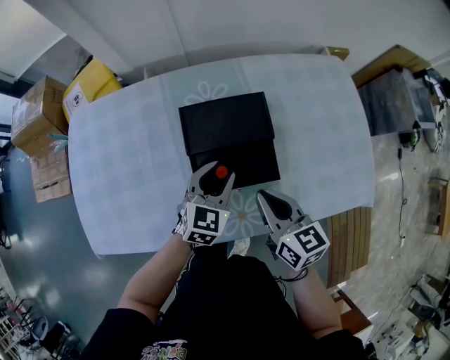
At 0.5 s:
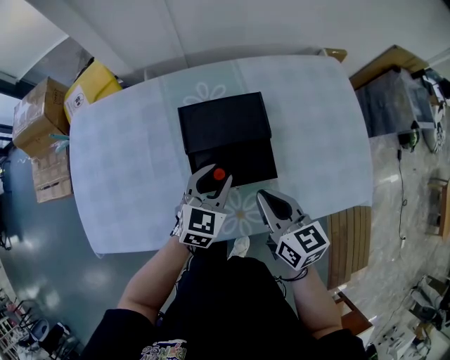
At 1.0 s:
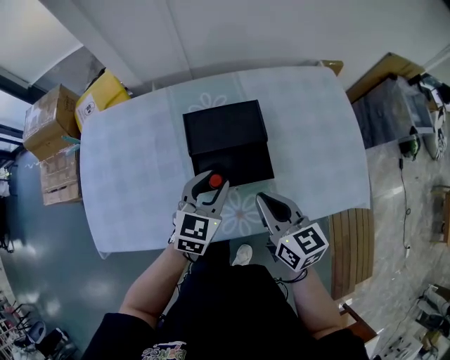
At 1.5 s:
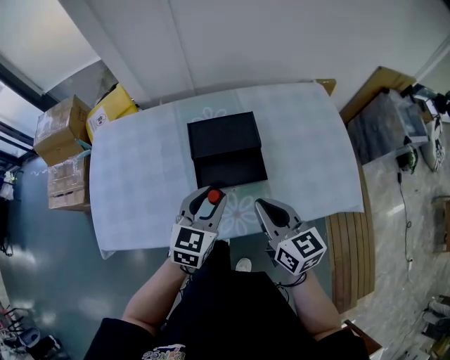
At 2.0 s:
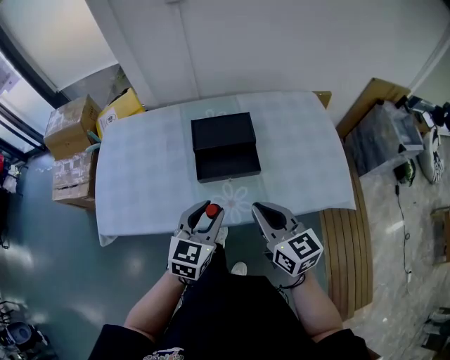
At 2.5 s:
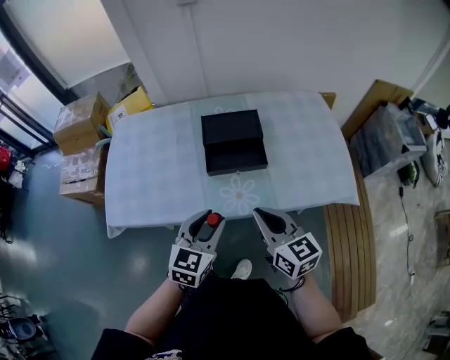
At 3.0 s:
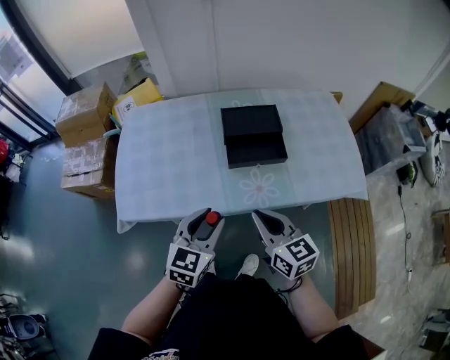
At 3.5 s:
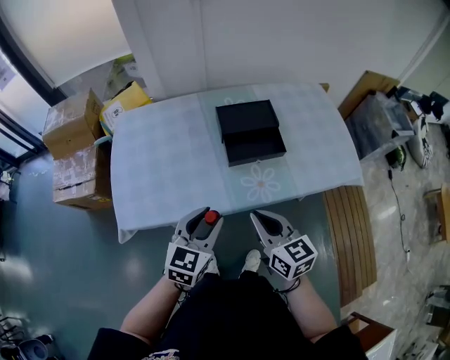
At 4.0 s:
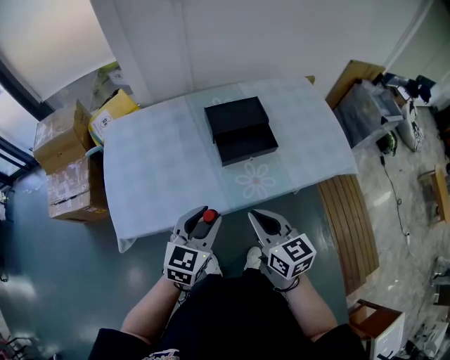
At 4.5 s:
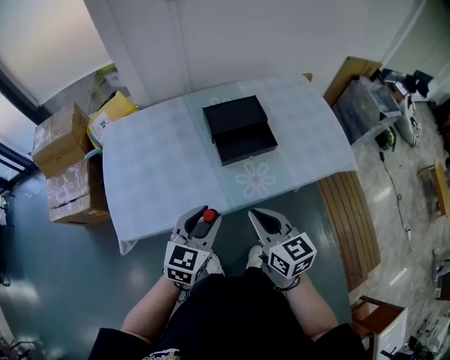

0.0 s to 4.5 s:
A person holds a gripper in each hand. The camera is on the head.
0.0 to 2.0 s: The grippers both shift backward and upward by about 20 cm.
2.0 to 4.5 s: The two grippers go about 15 cm to the left and backward.

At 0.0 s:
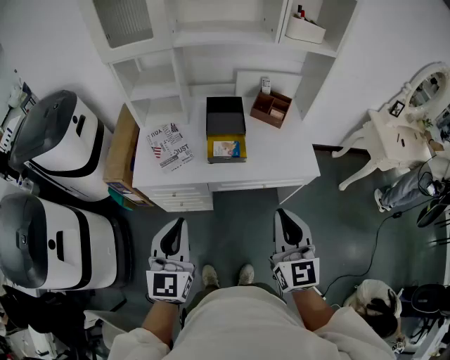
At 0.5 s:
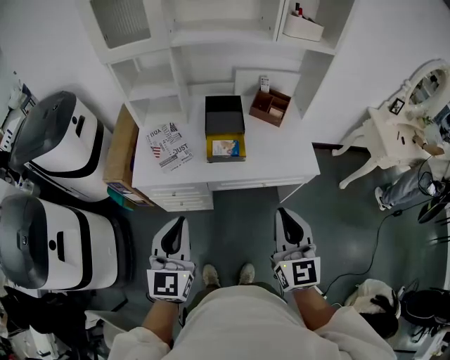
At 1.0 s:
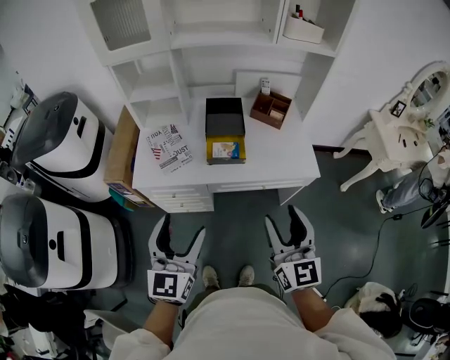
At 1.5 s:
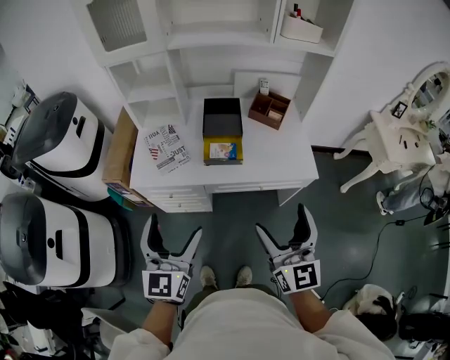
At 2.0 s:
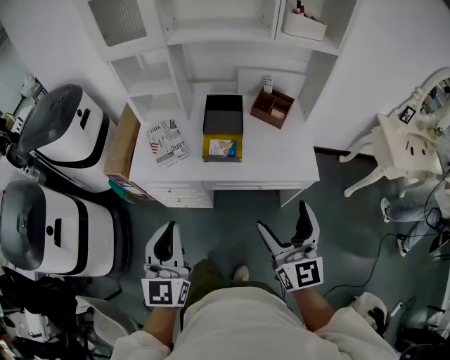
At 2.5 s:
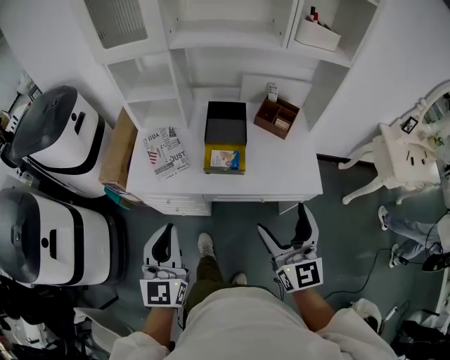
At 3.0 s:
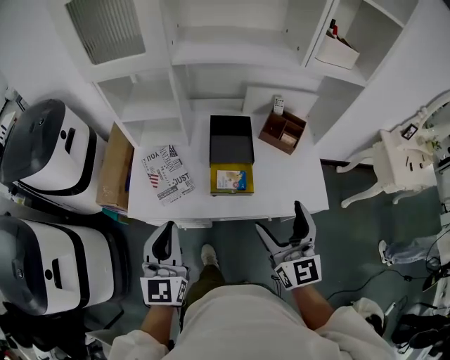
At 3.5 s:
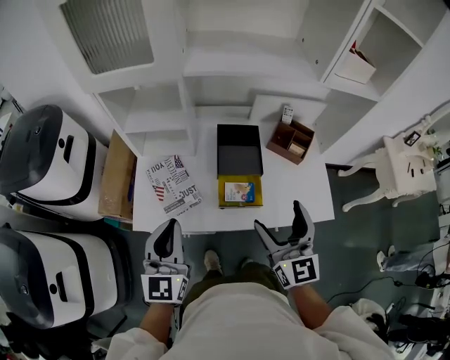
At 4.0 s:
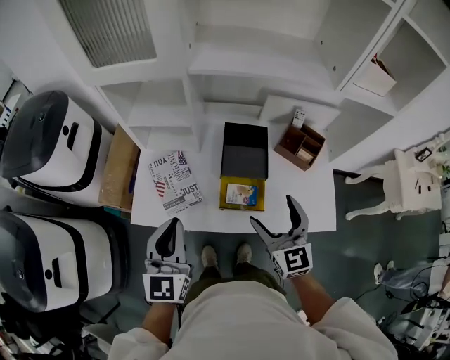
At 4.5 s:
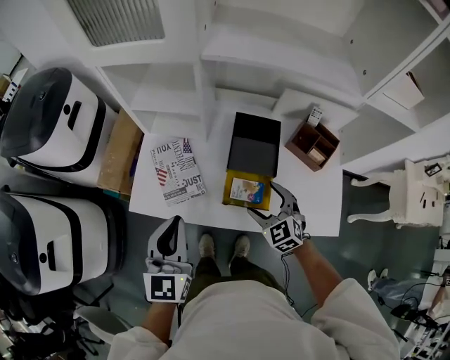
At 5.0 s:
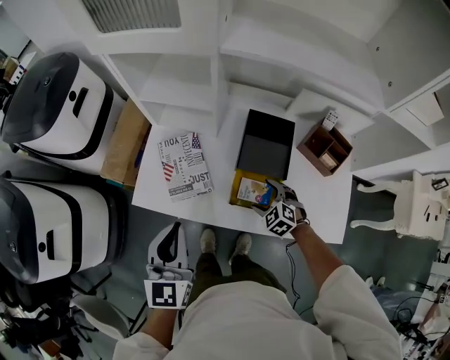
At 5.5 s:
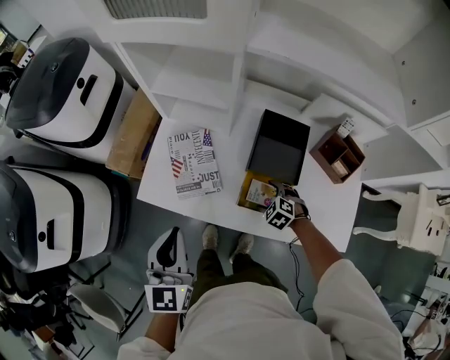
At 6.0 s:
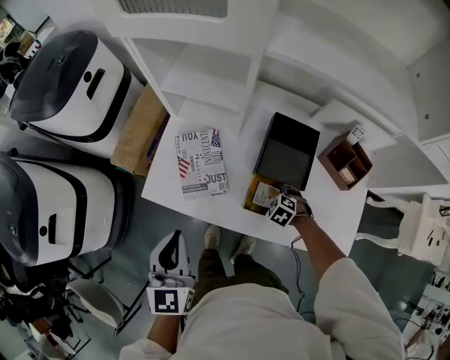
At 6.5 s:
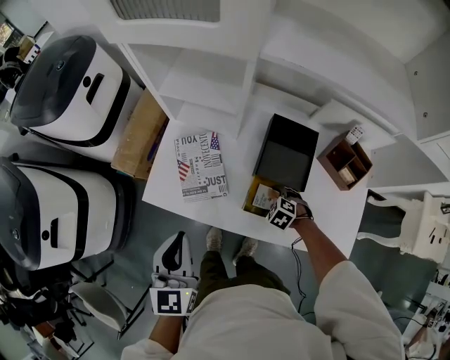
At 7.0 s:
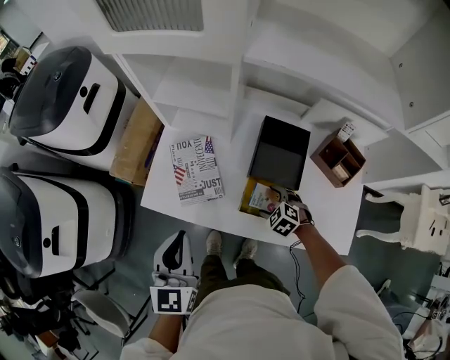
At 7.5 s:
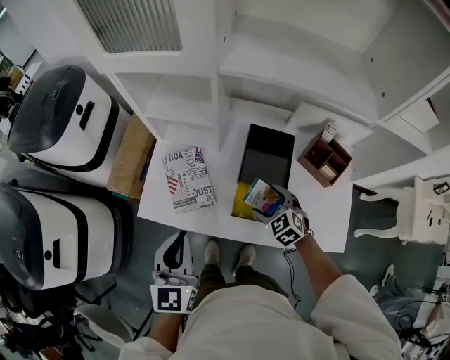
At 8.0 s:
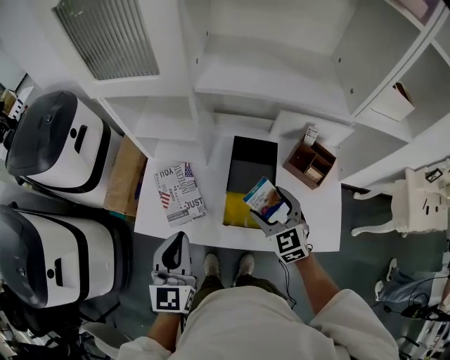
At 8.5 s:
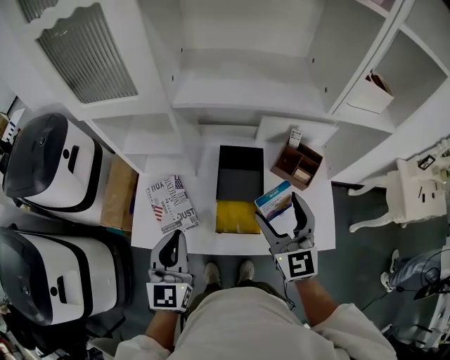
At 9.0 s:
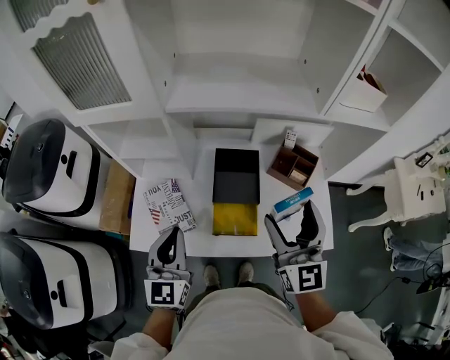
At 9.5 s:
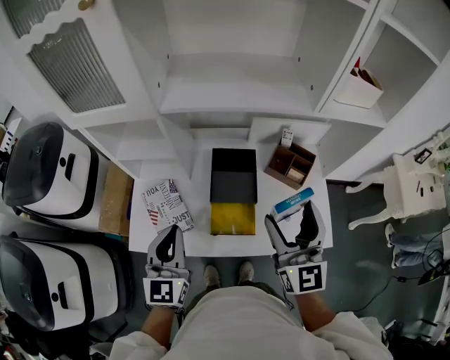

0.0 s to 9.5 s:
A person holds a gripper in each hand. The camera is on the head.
0.0 to 2.0 s: Both grippers travel together to the right, some 5 cm. The right gripper opens up. Meanwhile the left gripper opens and closes again.
2.0 to 4.0 s: The two grippers go approximately 30 cm forward.
4.0 to 5.5 s: The left gripper heads downward, covering approximately 5 cm; the right gripper shifts approximately 35 cm downward, and tips its fingers downward by roughly 60 degrees.
5.5 to 7.5 s: The right gripper moves upward, roughly 15 cm, and turns by approximately 20 degrees.
7.5 to 9.5 s: The left gripper goes some 10 cm to the right and upward; the right gripper moves upward, roughly 30 cm, and points its fingers about 50 degrees further upward.

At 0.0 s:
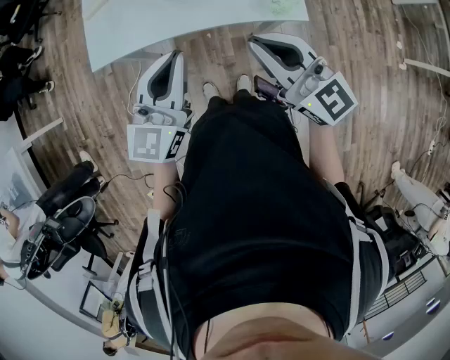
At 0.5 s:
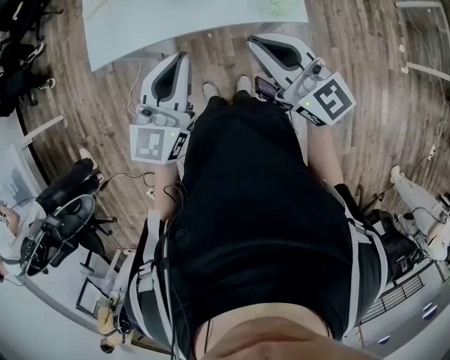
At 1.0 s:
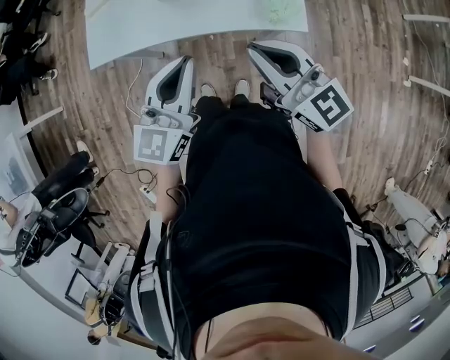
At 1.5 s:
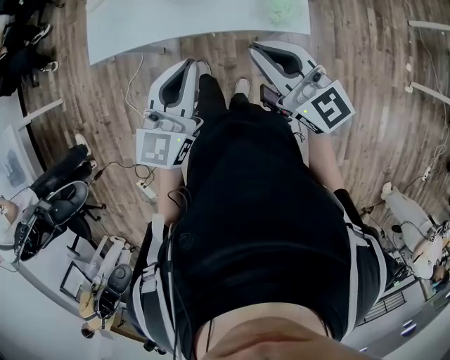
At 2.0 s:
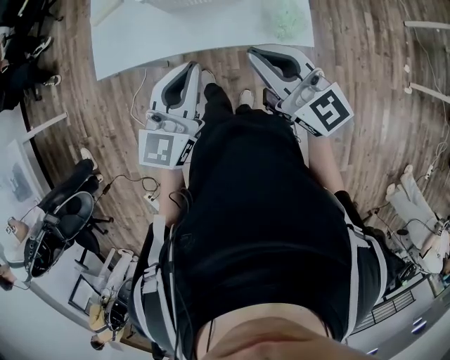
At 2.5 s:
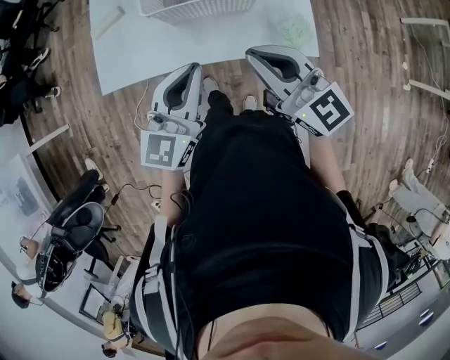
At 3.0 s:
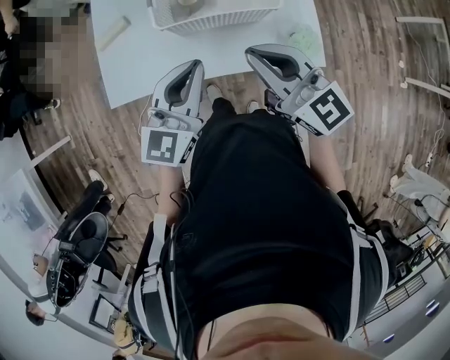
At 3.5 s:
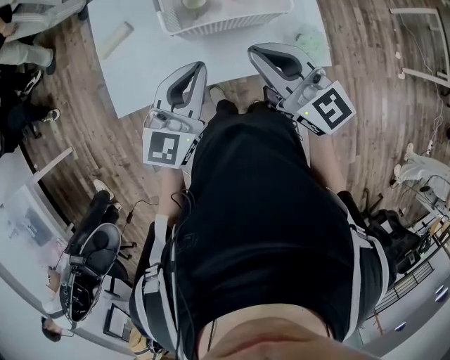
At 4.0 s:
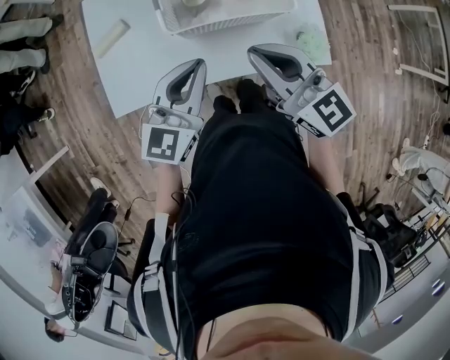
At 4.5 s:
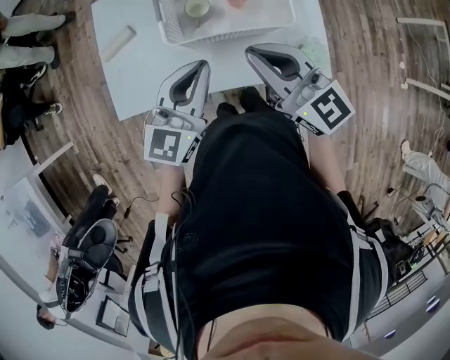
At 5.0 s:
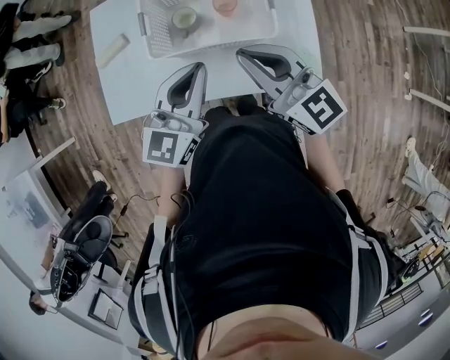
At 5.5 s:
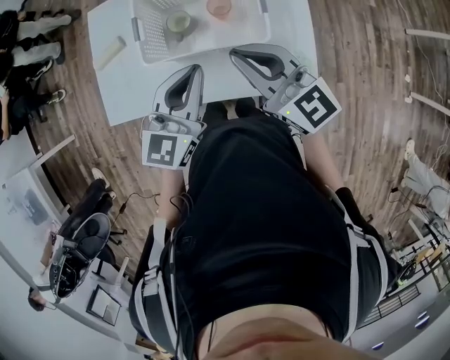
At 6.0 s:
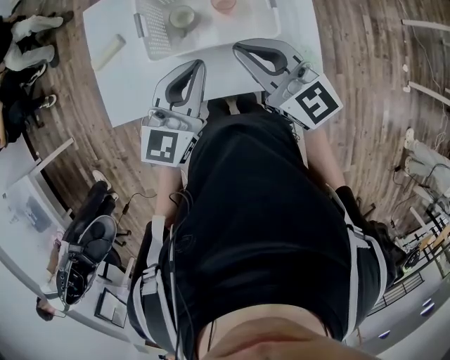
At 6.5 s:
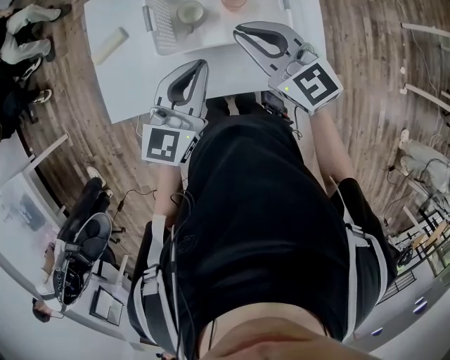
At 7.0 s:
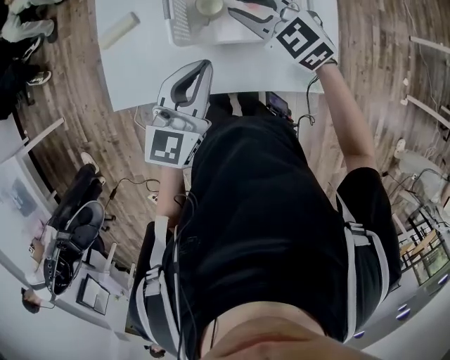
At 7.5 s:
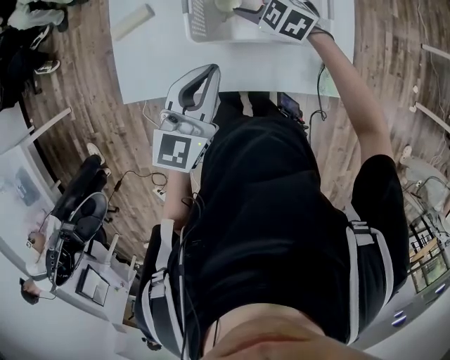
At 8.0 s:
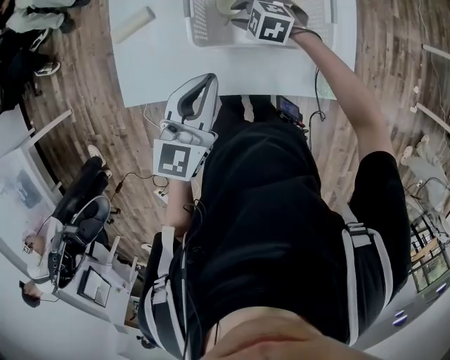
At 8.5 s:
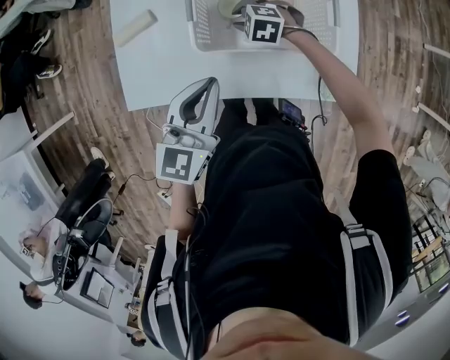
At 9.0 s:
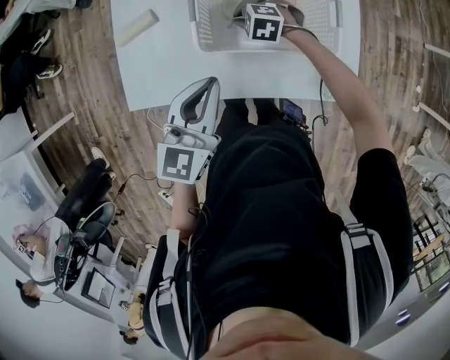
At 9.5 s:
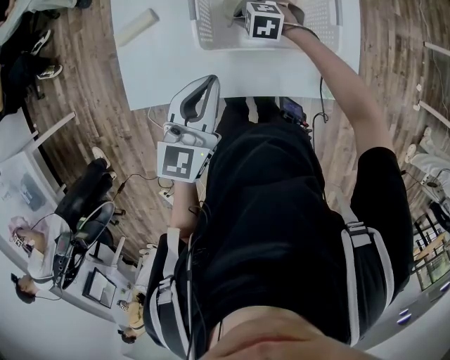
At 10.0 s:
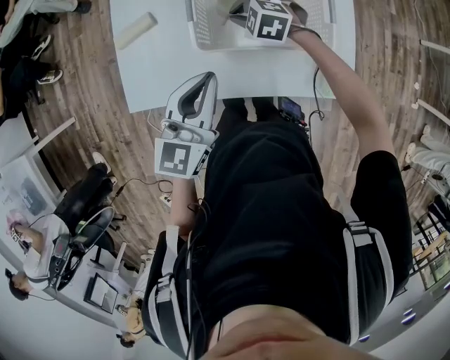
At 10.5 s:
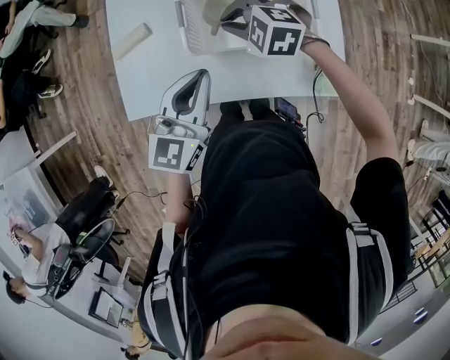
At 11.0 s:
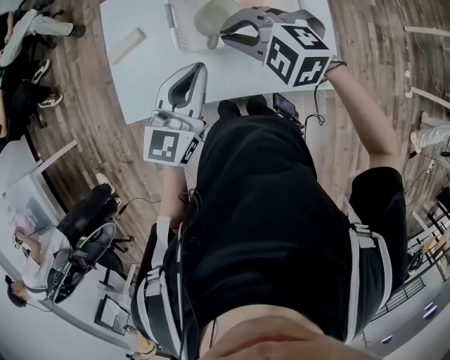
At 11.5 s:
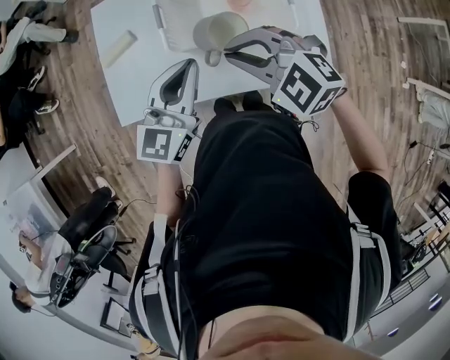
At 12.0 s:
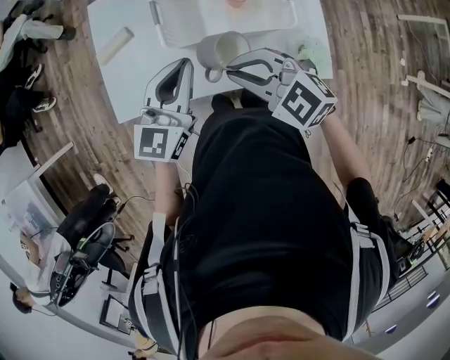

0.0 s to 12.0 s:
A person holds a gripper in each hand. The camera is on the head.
0.0 to 2.0 s: The right gripper goes approximately 10 cm forward; the left gripper is displaced forward and to the right by some 10 cm.
2.0 to 4.0 s: The two grippers go approximately 20 cm forward and to the left.
4.0 to 6.0 s: Both grippers travel together to the right and forward, roughly 10 cm.
6.0 to 8.0 s: The right gripper moves downward, forward and to the left, some 30 cm, angles its fingers downward, by about 50 degrees, and opens; the left gripper shifts roughly 10 cm to the left.
8.0 to 10.0 s: The grippers make only small movements.
10.0 to 12.0 s: The right gripper travels backward and upward by about 25 cm, and turns by roughly 30 degrees.

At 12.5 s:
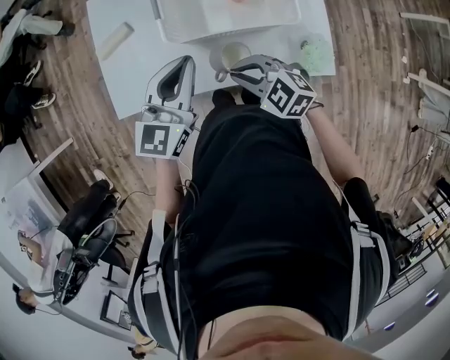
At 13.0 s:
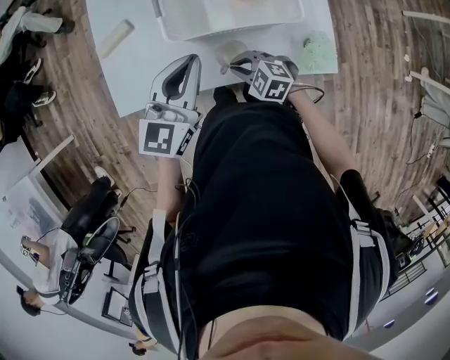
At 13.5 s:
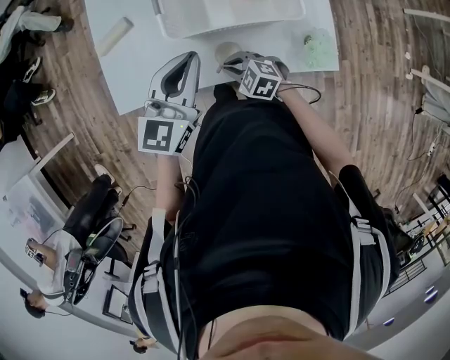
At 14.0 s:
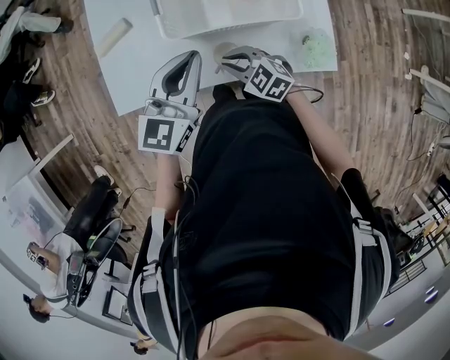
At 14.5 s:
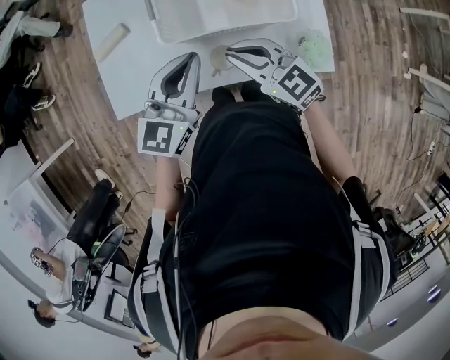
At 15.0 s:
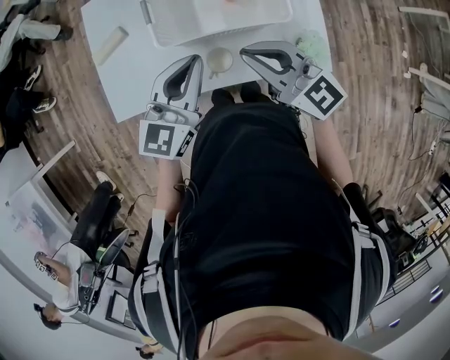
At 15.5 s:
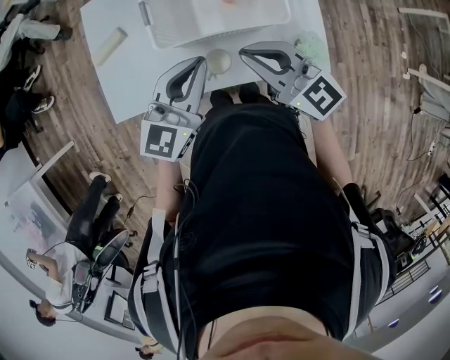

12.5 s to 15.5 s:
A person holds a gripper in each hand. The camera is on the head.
12.5 to 14.0 s: The right gripper heads downward, covering approximately 10 cm.
14.0 to 15.5 s: The right gripper travels upward and to the right by roughly 20 cm, and tilts its fingers roughly 30 degrees upward.
